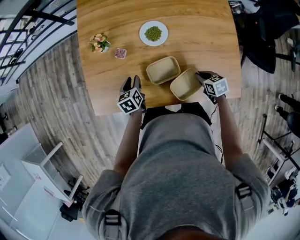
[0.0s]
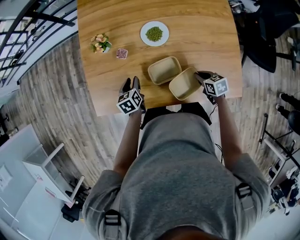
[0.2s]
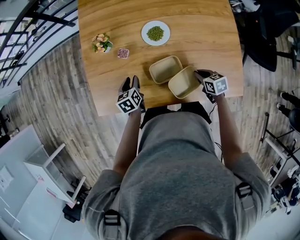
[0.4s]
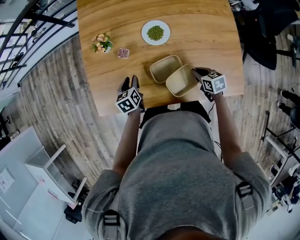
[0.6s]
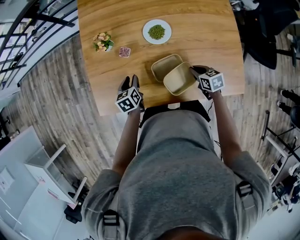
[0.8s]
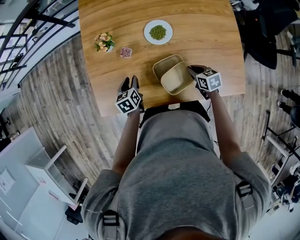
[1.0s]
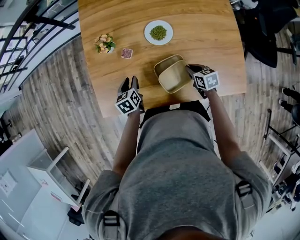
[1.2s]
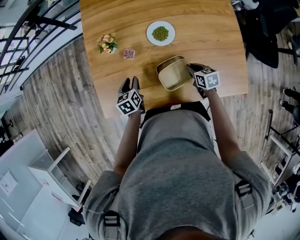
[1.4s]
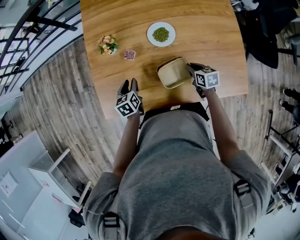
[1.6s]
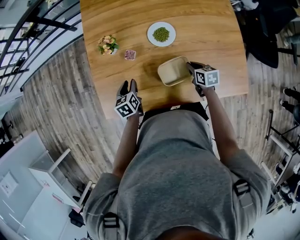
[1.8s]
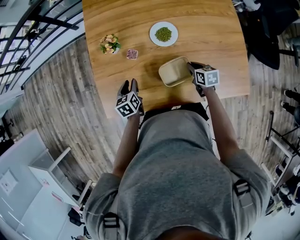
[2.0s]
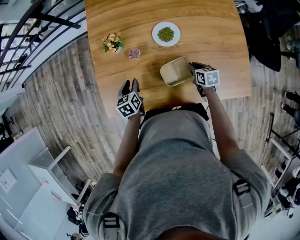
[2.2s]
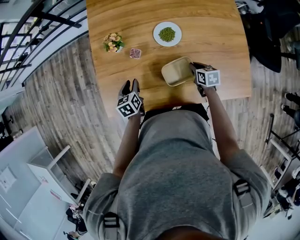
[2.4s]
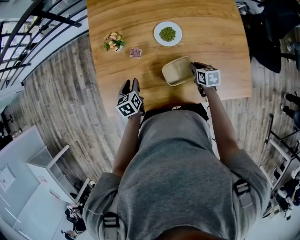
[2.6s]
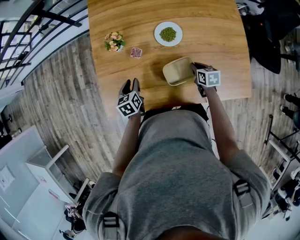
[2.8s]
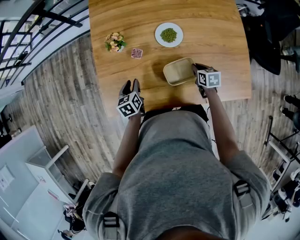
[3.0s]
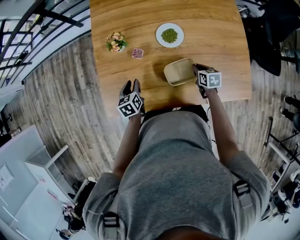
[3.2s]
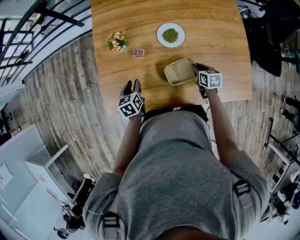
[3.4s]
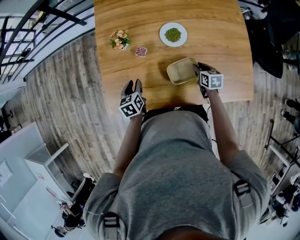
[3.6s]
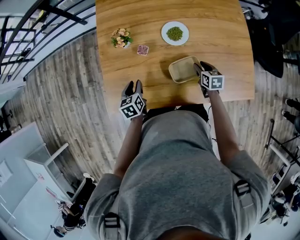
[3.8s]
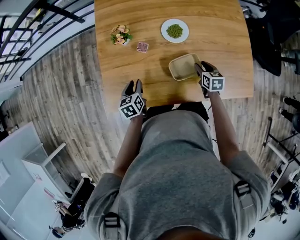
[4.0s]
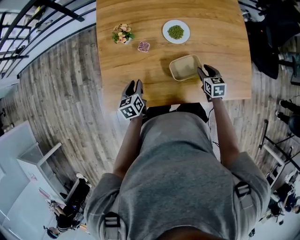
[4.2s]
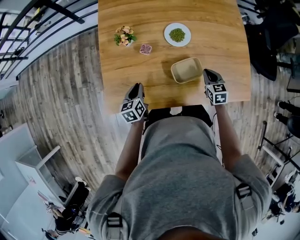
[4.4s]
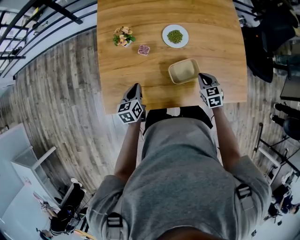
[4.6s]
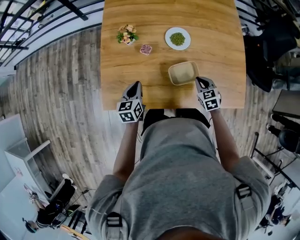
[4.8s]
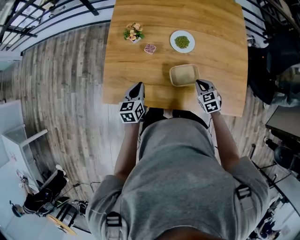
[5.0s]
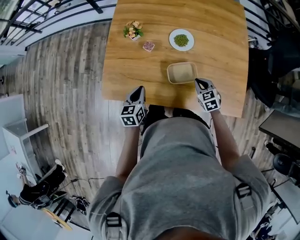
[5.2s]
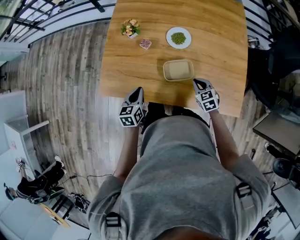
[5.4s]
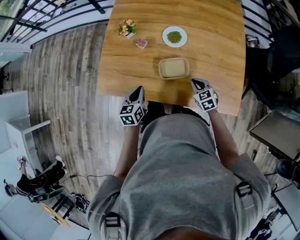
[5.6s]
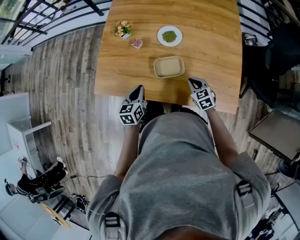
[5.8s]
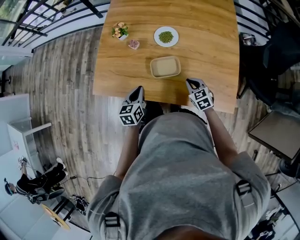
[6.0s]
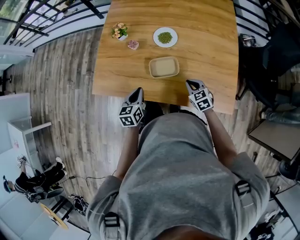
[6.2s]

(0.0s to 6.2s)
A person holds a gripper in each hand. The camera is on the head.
0.0s - 1.6s: The right gripper heads forward and to the left, covering approximately 10 cm, while the left gripper shifts about 5 cm to the left.
1.6s - 3.2s: The grippers make only small movements.
3.2s - 4.6s: The left gripper closes its fingers. The right gripper goes some 5 cm upward, rotates approximately 30 degrees, and opens and closes again.
4.6s - 6.2s: The right gripper moves backward and to the right, about 10 cm, and swivels approximately 20 degrees, while the left gripper shifts about 20 cm to the right, backward and upward.

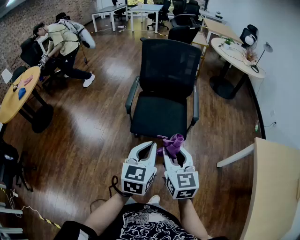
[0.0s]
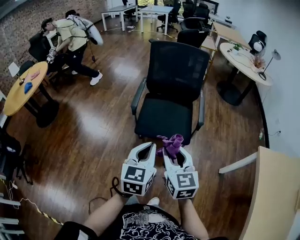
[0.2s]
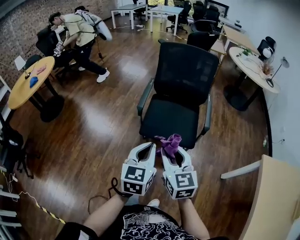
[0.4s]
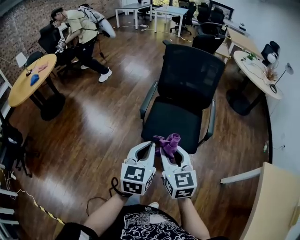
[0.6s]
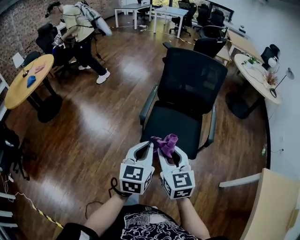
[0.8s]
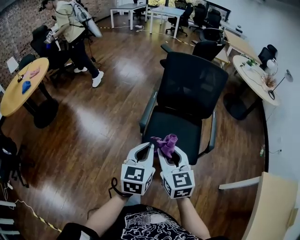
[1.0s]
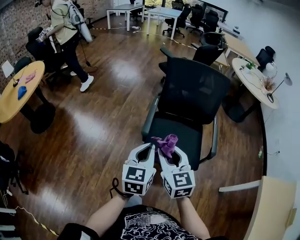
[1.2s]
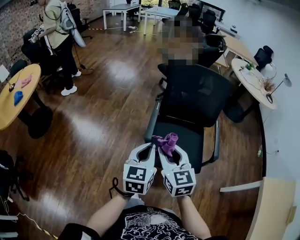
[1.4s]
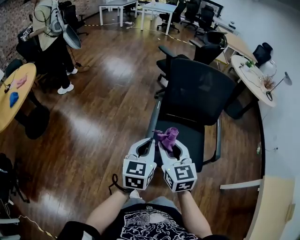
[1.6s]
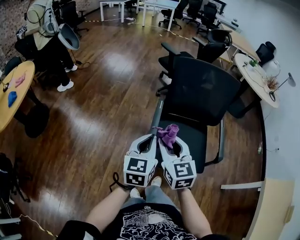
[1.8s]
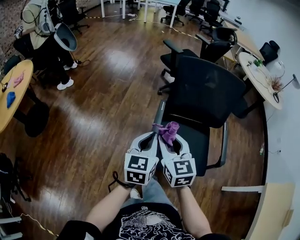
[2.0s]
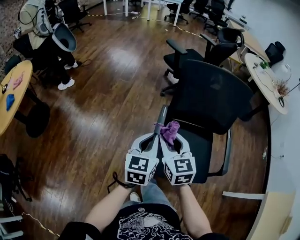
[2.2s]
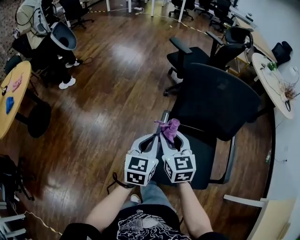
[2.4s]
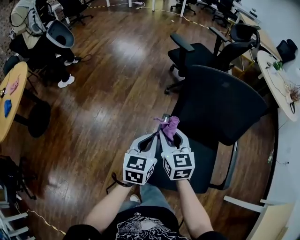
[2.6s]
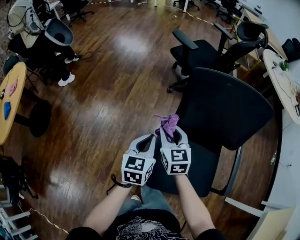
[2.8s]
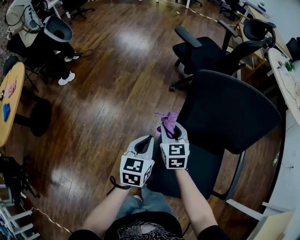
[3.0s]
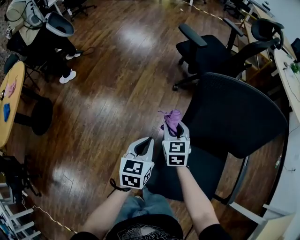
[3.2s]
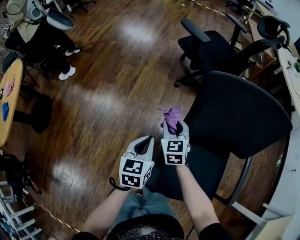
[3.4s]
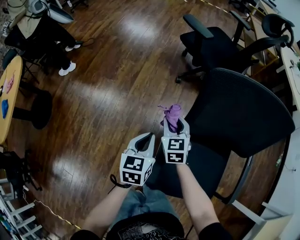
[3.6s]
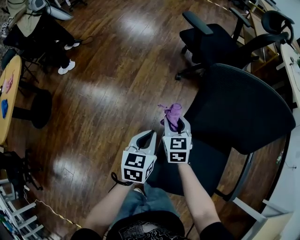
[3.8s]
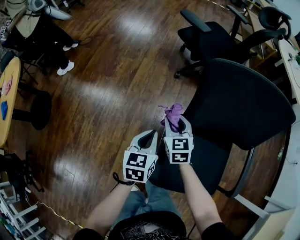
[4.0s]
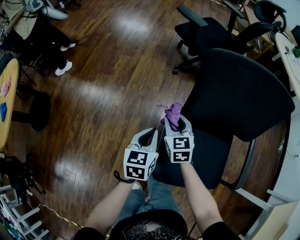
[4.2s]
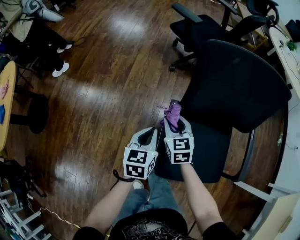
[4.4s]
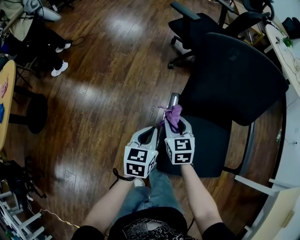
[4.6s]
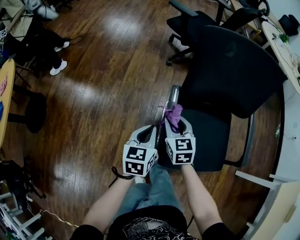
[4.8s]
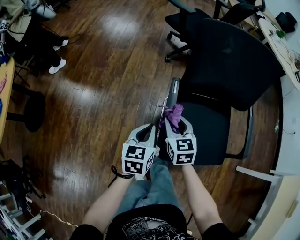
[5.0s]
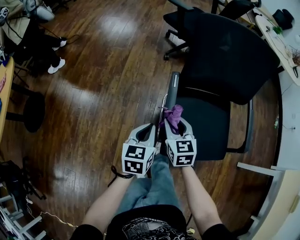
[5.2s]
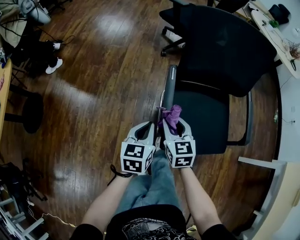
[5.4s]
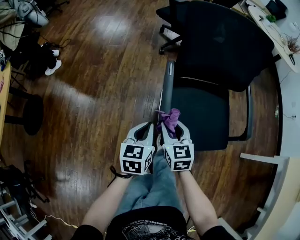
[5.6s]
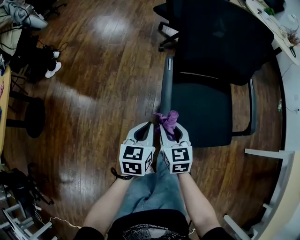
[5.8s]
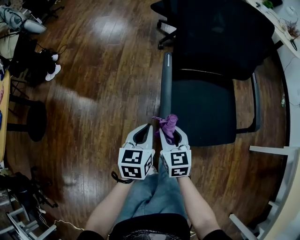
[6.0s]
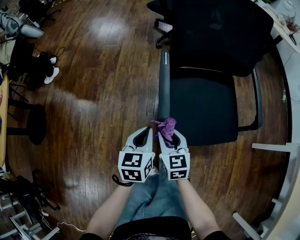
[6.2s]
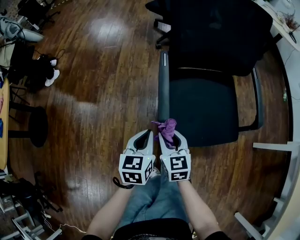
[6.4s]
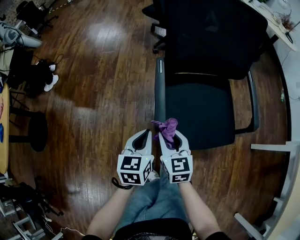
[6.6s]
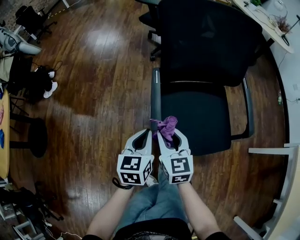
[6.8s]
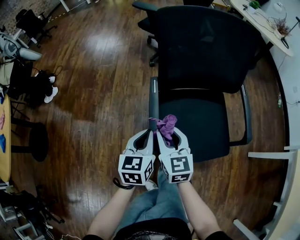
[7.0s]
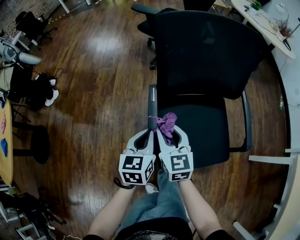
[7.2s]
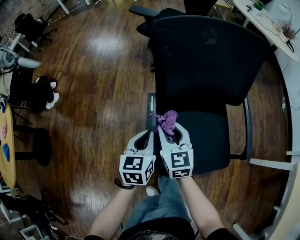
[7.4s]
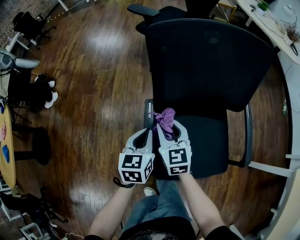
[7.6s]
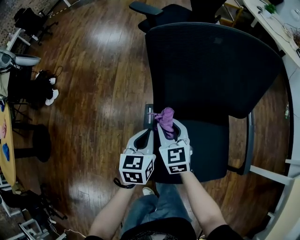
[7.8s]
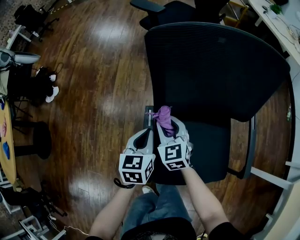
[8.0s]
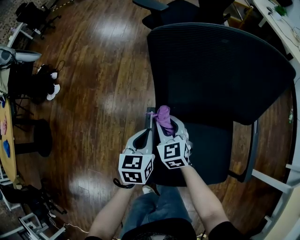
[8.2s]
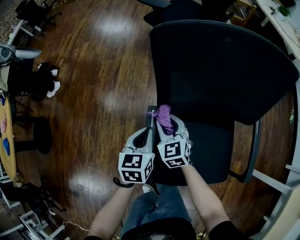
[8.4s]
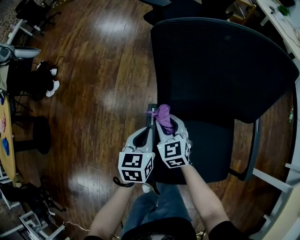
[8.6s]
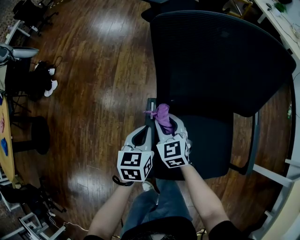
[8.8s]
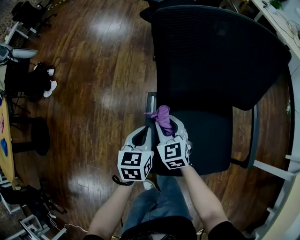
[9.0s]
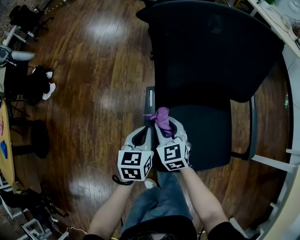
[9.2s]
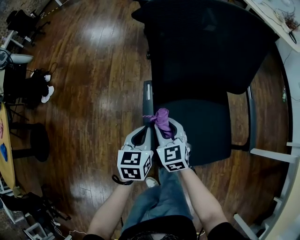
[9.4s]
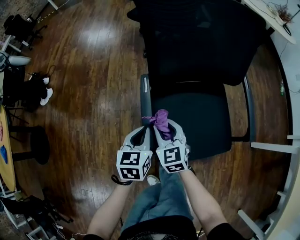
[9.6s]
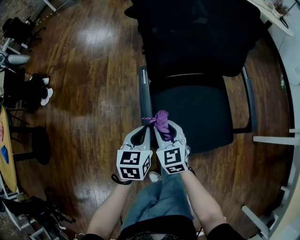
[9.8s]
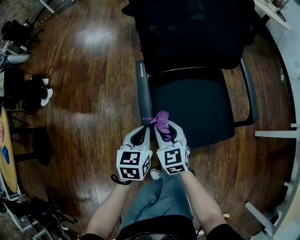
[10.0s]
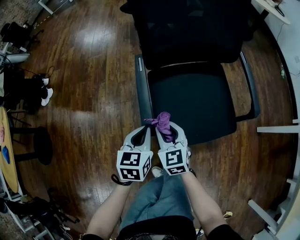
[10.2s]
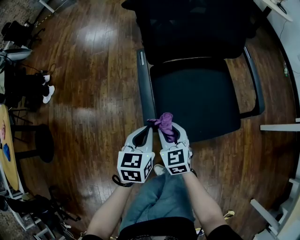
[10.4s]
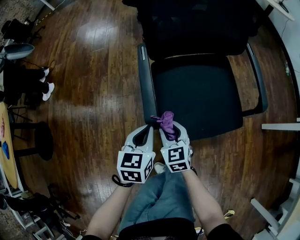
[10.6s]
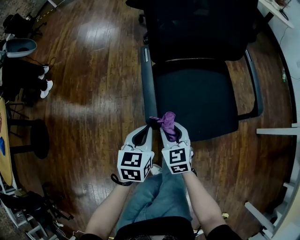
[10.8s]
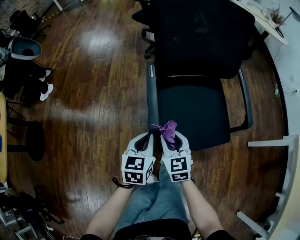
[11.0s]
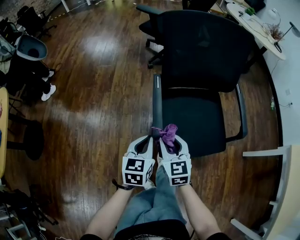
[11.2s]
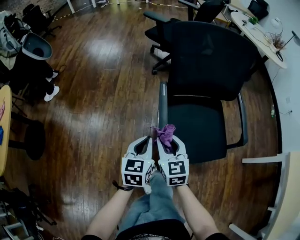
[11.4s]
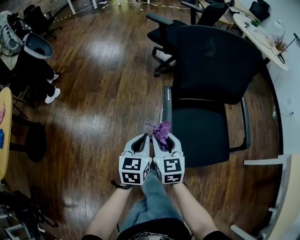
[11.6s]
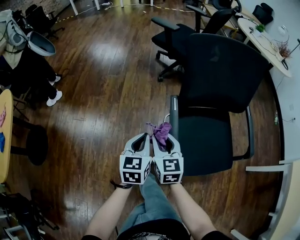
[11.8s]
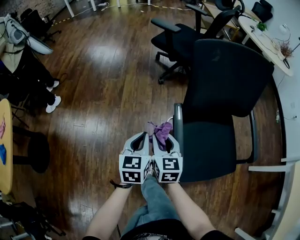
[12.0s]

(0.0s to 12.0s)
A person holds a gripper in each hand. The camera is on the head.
0.0s - 1.6s: The two grippers go some 35 cm forward and to the left.
1.6s - 3.0s: Both grippers move forward and downward, about 40 cm.
3.0s - 4.4s: The right gripper shifts some 10 cm downward and backward. The left gripper travels downward by some 5 cm.
4.4s - 6.0s: The grippers both shift backward by roughly 20 cm.
6.0s - 7.6s: Both grippers travel together forward, roughly 25 cm.
7.6s - 9.0s: The left gripper shifts by about 5 cm, while the right gripper is displaced downward by roughly 5 cm.
9.0s - 10.4s: Both grippers travel together backward, about 20 cm.
10.4s - 12.0s: The right gripper heads forward, to the left and upward, covering roughly 25 cm. The left gripper travels to the left, forward and upward by some 25 cm.

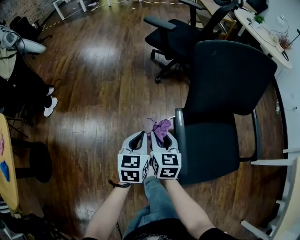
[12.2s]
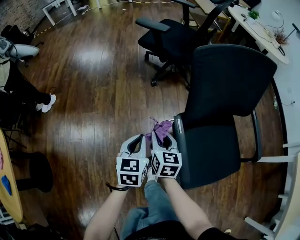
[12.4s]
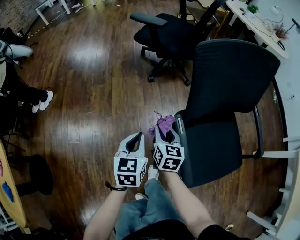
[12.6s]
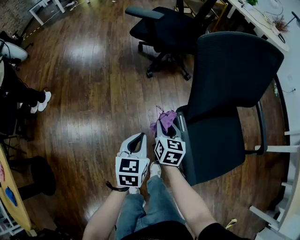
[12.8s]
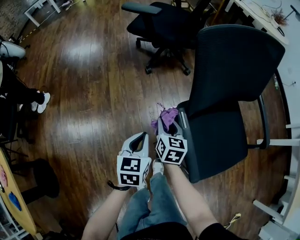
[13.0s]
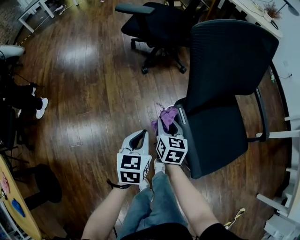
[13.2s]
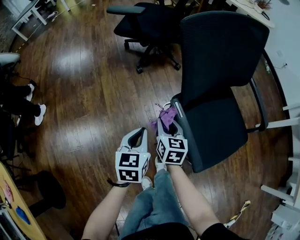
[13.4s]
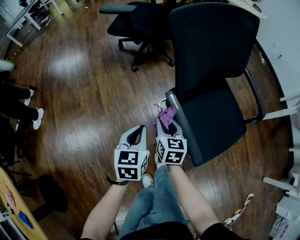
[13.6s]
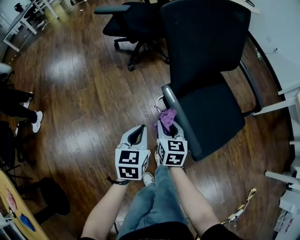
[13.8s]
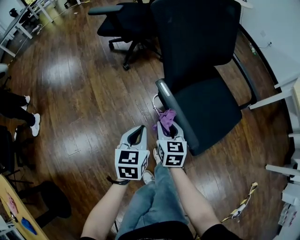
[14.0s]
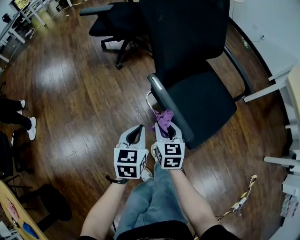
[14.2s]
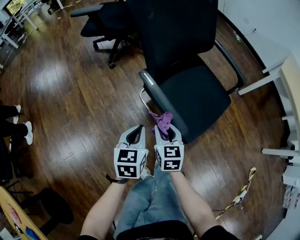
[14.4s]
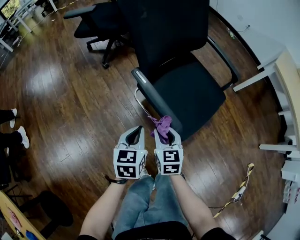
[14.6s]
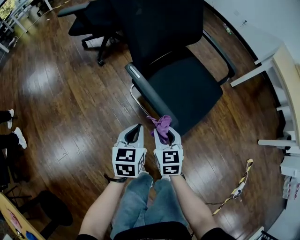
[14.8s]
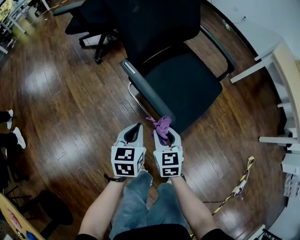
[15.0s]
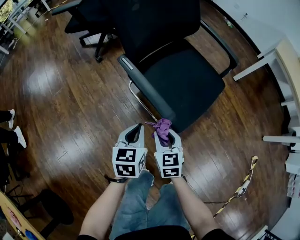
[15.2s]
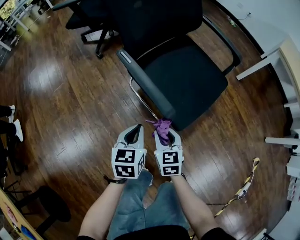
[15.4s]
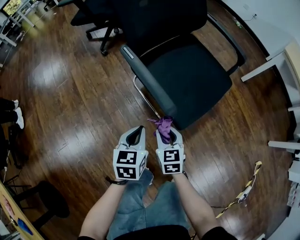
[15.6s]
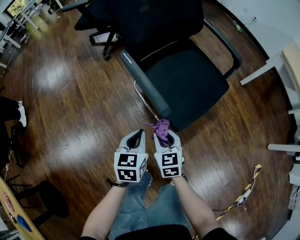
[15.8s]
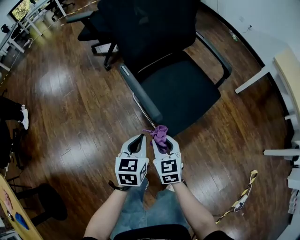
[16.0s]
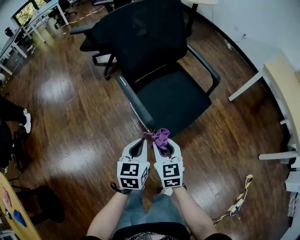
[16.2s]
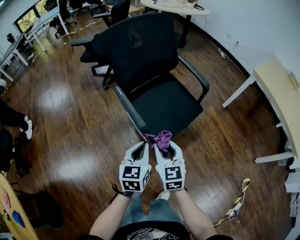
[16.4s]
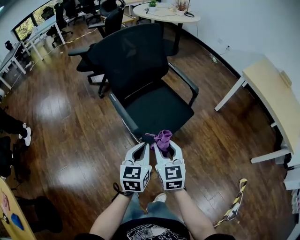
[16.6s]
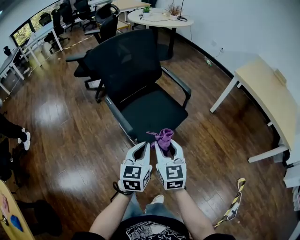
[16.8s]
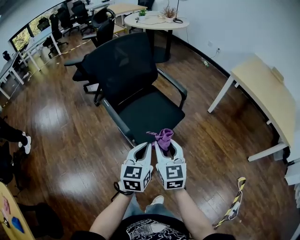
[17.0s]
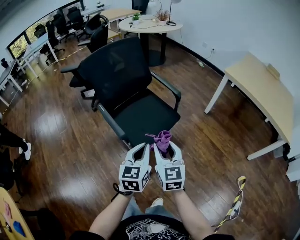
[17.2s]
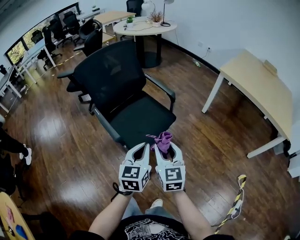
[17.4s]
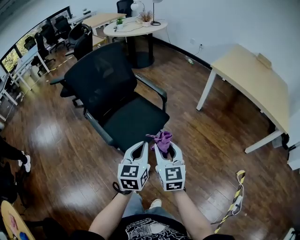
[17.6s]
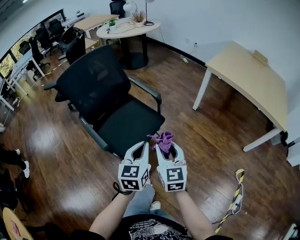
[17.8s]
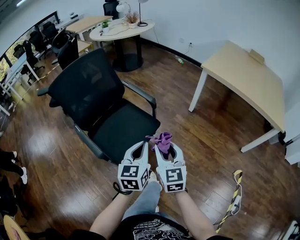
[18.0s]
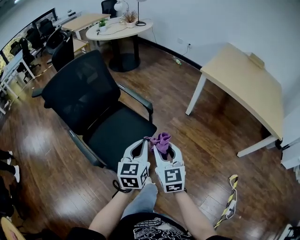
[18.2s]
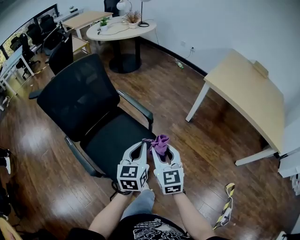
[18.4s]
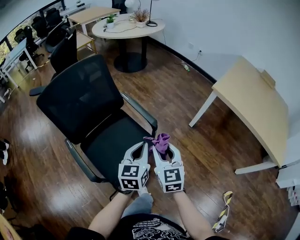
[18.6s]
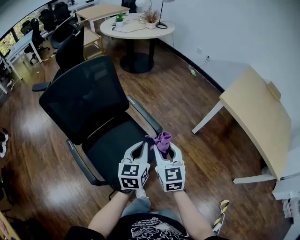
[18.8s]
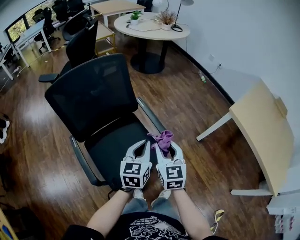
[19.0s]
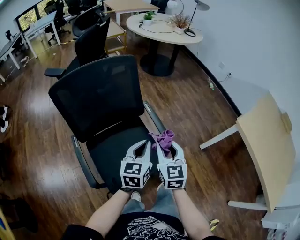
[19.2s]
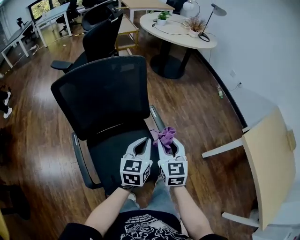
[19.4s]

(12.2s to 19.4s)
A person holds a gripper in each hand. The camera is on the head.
12.2s - 13.6s: The right gripper moves downward, approximately 10 cm, travels forward and back again, some 10 cm each way, and turns by about 20 degrees. The left gripper turns by approximately 20 degrees.
13.6s - 15.0s: The right gripper is displaced backward and to the right by roughly 25 cm, while the left gripper shifts roughly 20 cm to the right and backward.
15.0s - 16.6s: The left gripper shifts roughly 30 cm to the right, upward and backward; the right gripper heads upward and to the right, covering about 25 cm.
16.6s - 18.0s: Both grippers travel together to the right, some 25 cm.
18.0s - 19.4s: Both grippers move forward, about 35 cm. The right gripper turns by approximately 20 degrees, while the left gripper rotates approximately 20 degrees.
